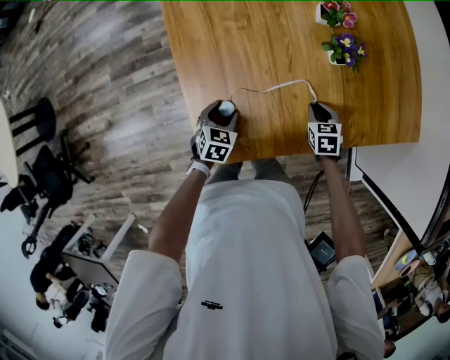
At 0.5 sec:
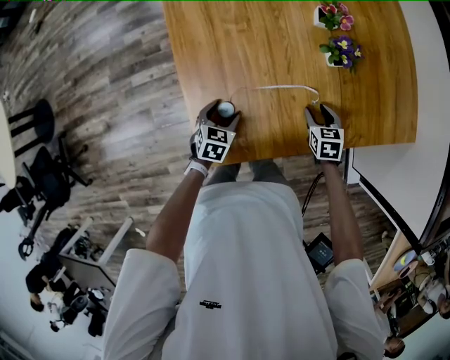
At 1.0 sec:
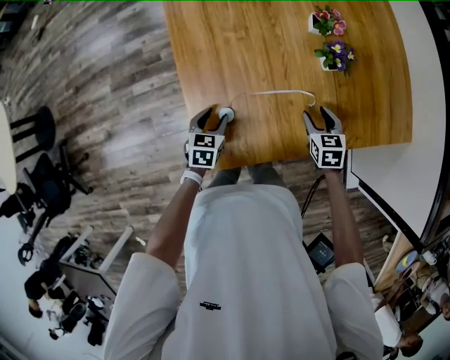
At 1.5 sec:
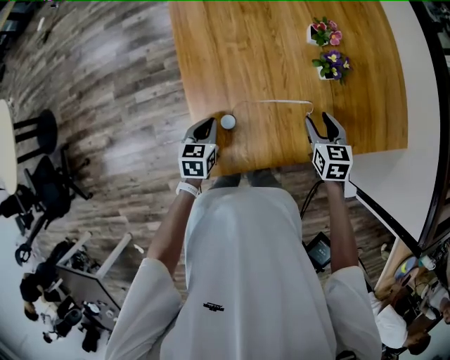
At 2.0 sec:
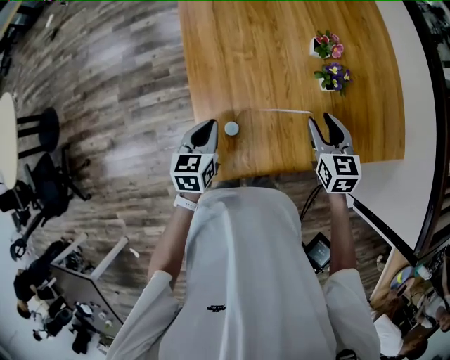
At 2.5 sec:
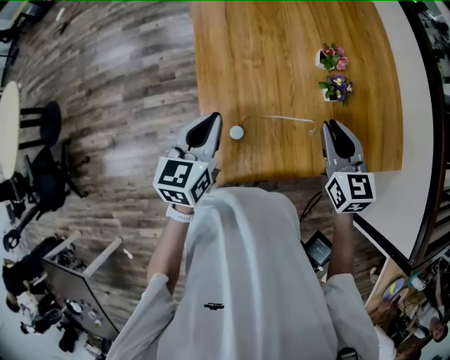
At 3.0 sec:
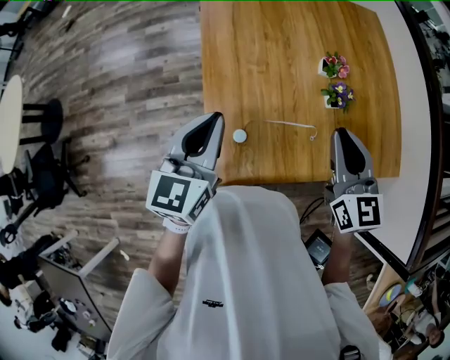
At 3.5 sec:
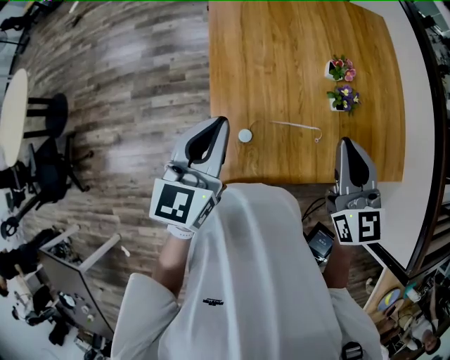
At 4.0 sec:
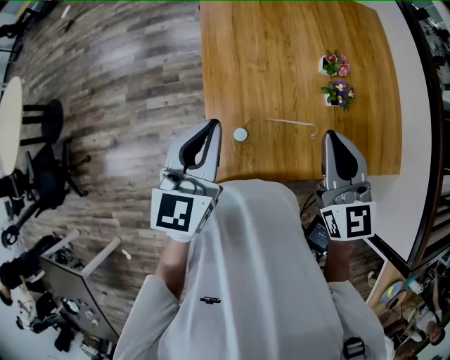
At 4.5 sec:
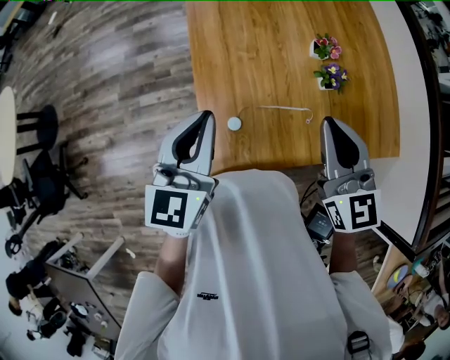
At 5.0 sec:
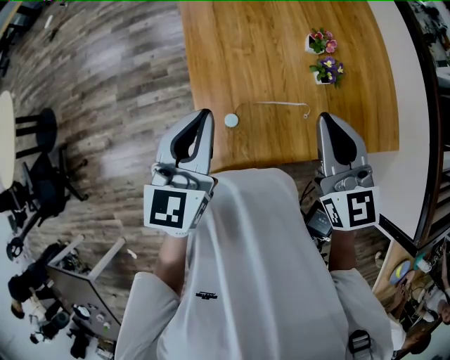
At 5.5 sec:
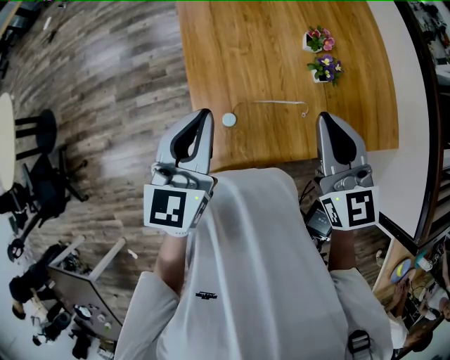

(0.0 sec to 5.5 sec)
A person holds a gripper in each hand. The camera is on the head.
0.0 sec - 2.0 sec: The two grippers go some 20 cm upward. The right gripper rotates some 30 degrees, and opens up, while the left gripper turns by about 30 degrees, and closes.
2.0 sec - 3.5 sec: The grippers both shift upward by some 20 cm. The right gripper changes its angle by some 20 degrees, and closes its fingers. Meanwhile the left gripper changes its angle by some 20 degrees.
3.5 sec - 5.5 sec: The grippers stay close to where they were, moving slightly.

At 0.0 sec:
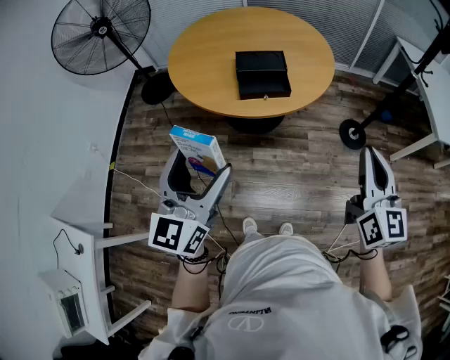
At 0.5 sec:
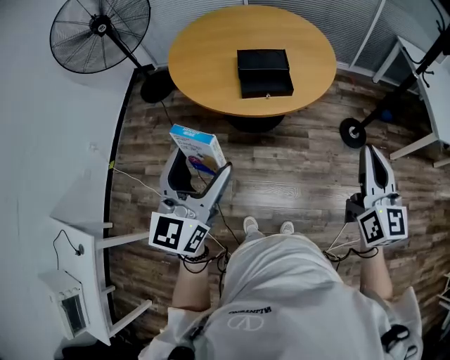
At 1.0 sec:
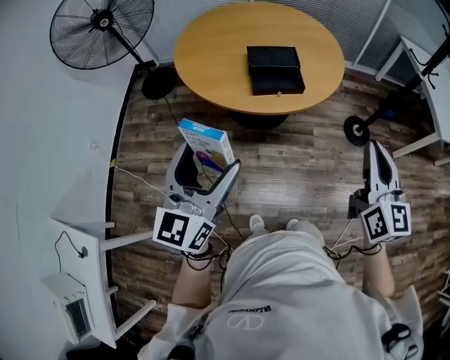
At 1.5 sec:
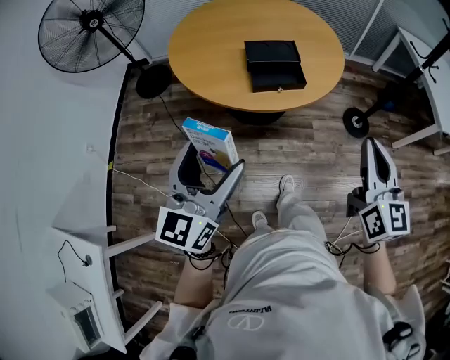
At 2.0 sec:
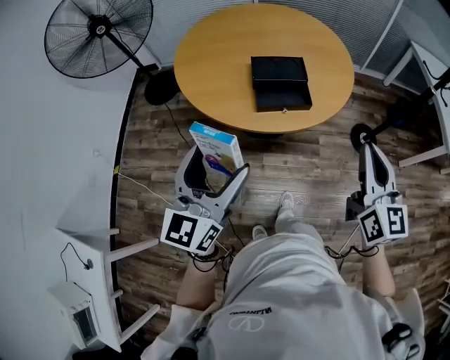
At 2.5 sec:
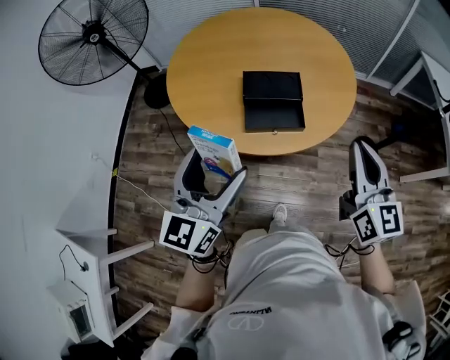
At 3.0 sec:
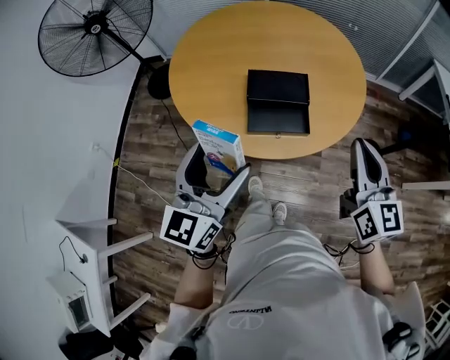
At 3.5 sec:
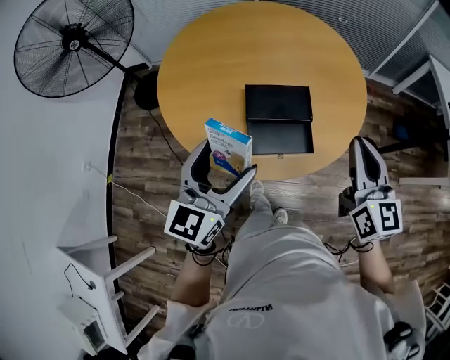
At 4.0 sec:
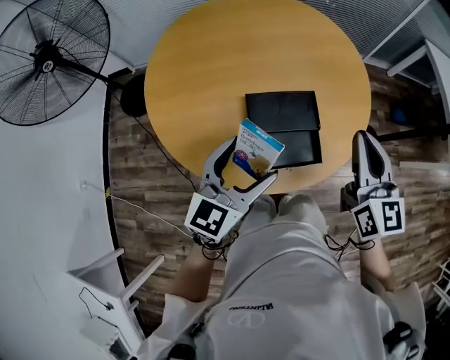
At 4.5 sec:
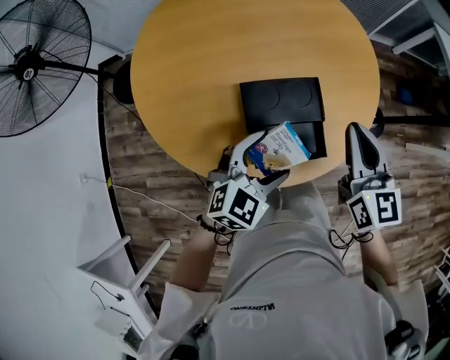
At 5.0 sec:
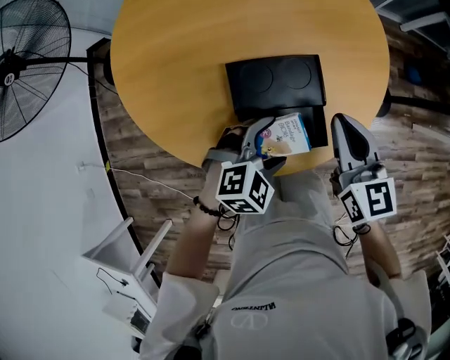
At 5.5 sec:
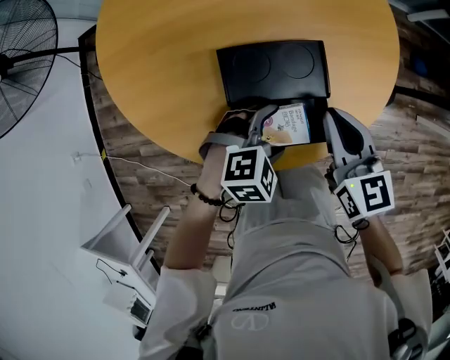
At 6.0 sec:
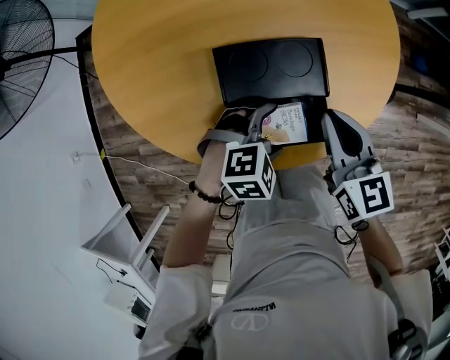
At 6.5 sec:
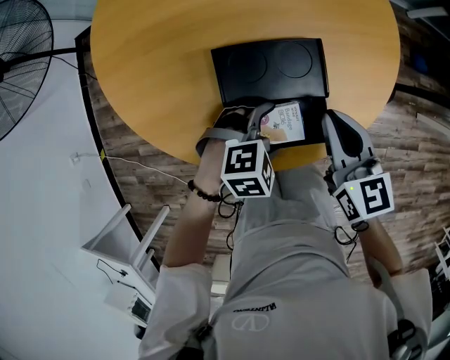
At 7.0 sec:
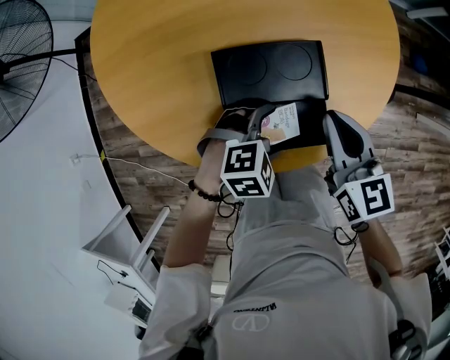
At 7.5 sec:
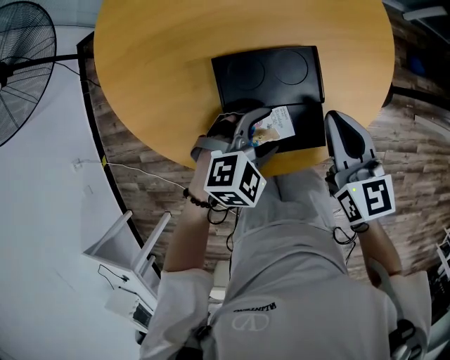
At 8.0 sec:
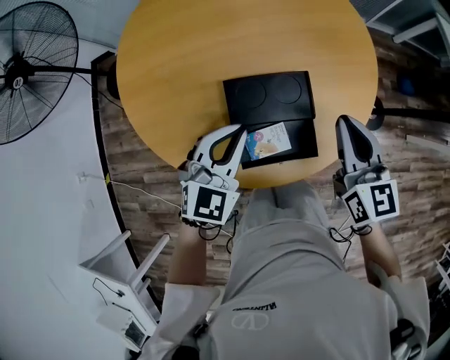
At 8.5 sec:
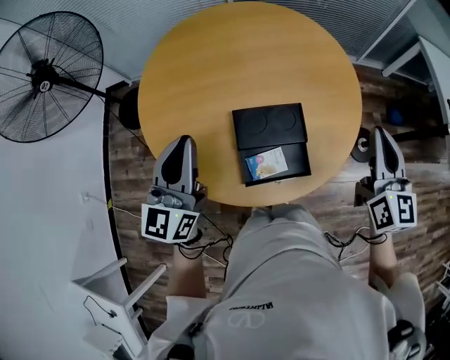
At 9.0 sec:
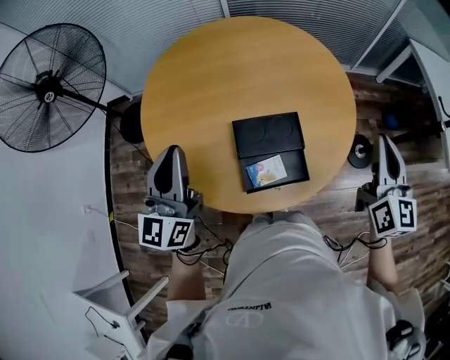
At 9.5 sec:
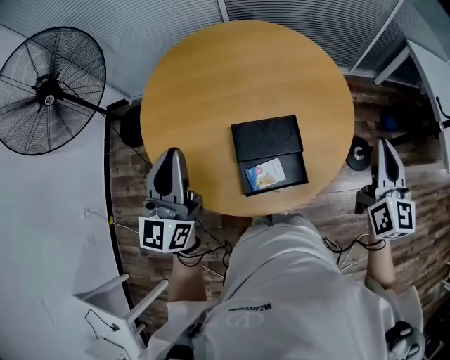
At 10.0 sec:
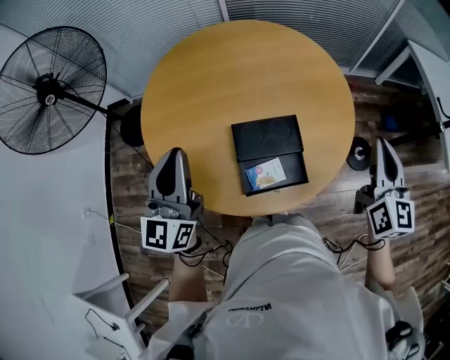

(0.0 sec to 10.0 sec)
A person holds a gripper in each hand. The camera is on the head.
0.0 sec - 2.0 sec: The grippers both shift forward and to the left by roughly 15 cm.
2.0 sec - 4.0 sec: The two grippers go about 35 cm forward. The left gripper rotates approximately 20 degrees.
4.0 sec - 6.0 sec: Both grippers move downward, approximately 25 cm. The left gripper tilts its fingers about 50 degrees downward. Meanwhile the right gripper turns by roughly 20 degrees.
6.0 sec - 8.0 sec: The left gripper is displaced upward and to the left by some 20 cm, tilts its fingers roughly 40 degrees upward, and closes its fingers, while the right gripper travels upward by some 10 cm.
8.0 sec - 10.0 sec: The right gripper moves upward and to the right, about 20 cm, and rotates some 20 degrees. Meanwhile the left gripper travels upward and to the left by roughly 25 cm, and tilts its fingers about 30 degrees upward.

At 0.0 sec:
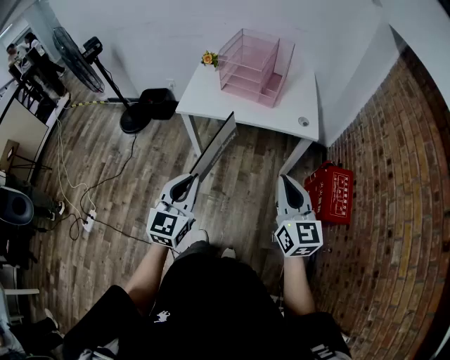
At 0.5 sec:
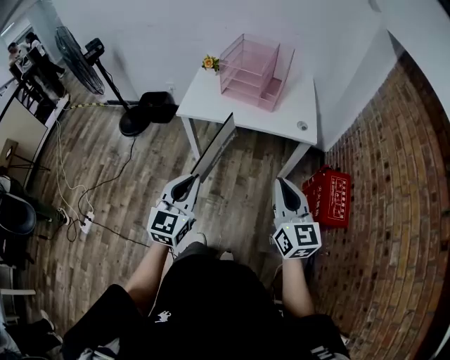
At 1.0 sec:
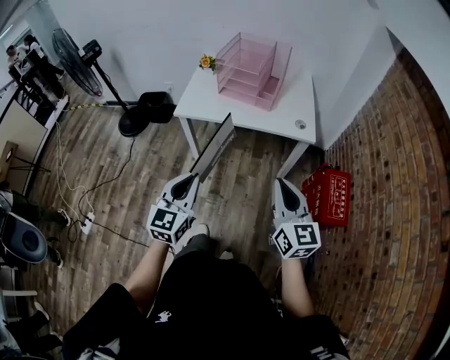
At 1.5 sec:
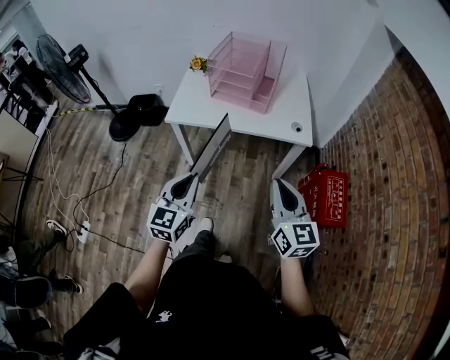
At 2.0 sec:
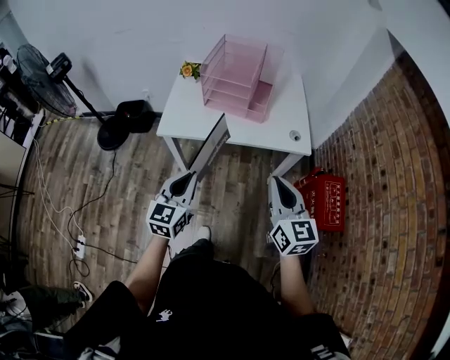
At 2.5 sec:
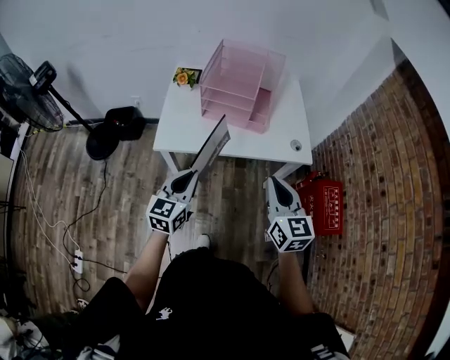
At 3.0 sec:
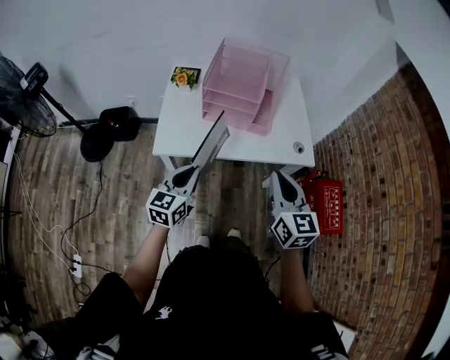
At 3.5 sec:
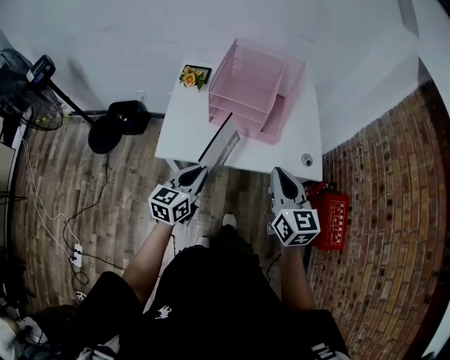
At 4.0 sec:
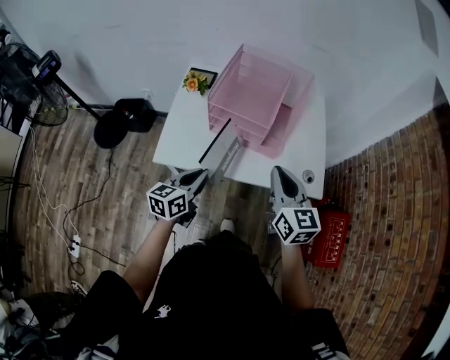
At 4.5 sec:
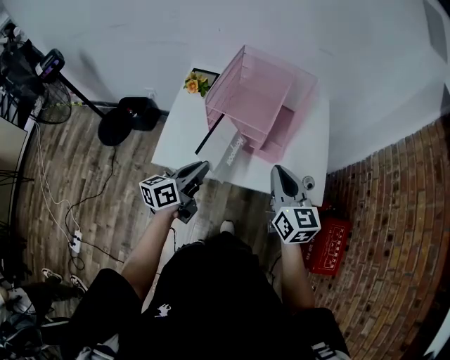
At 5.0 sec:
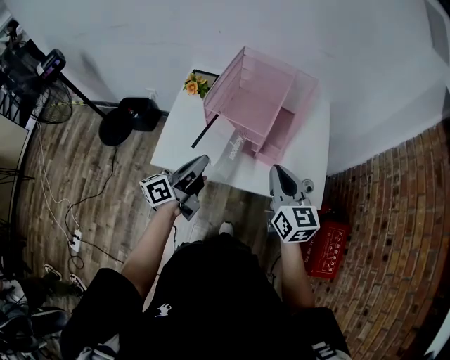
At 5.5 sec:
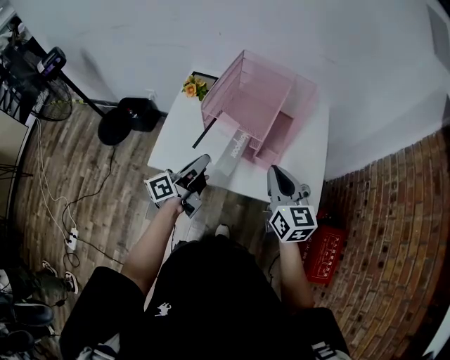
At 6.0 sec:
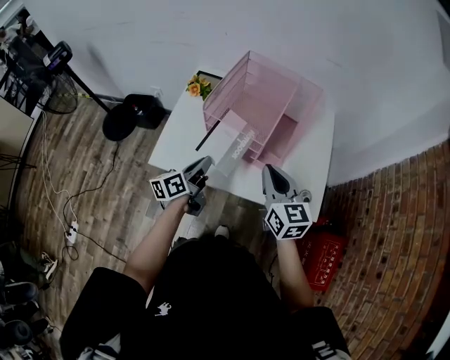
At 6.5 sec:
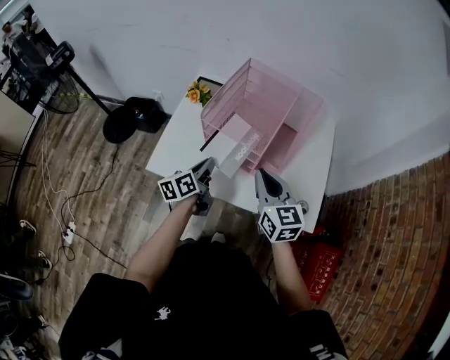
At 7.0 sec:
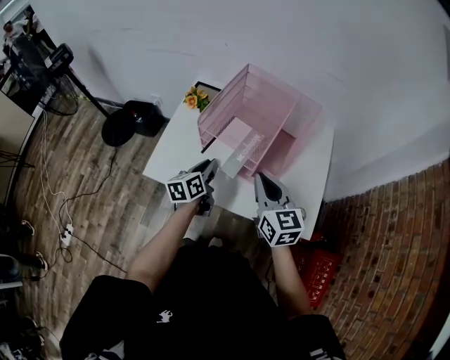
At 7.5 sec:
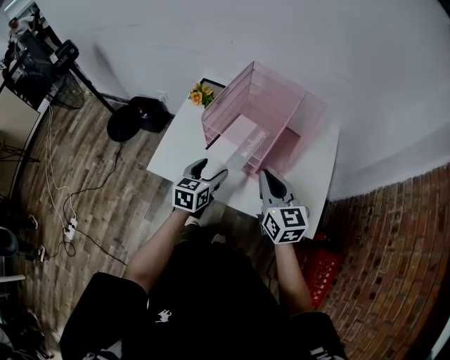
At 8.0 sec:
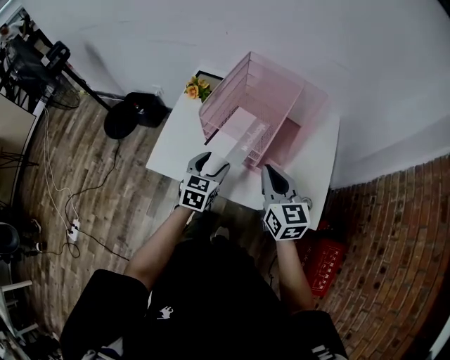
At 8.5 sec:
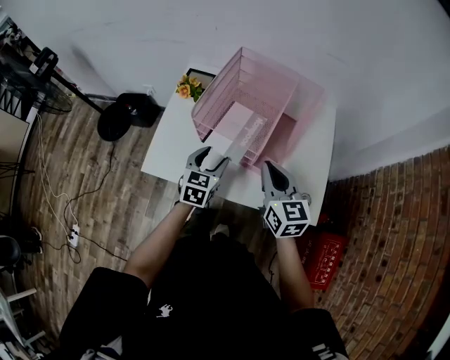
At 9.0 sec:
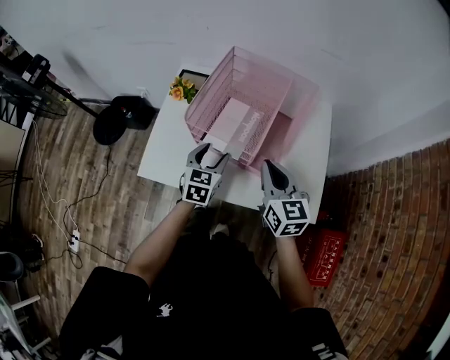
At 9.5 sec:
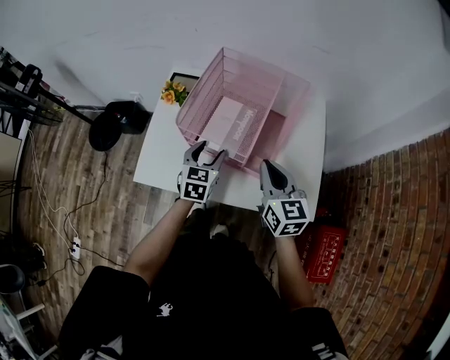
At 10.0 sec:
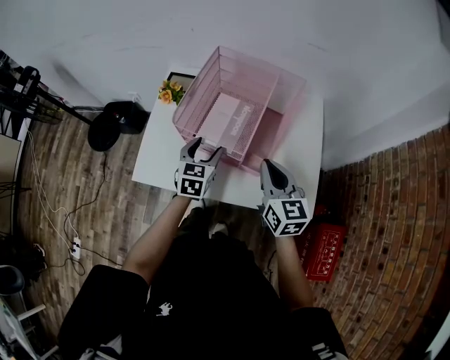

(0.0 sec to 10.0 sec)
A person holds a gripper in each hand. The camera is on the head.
0.0 sec - 2.0 sec: The grippers both shift forward by approximately 15 cm.
2.0 sec - 4.0 sec: The grippers both shift forward by some 25 cm. The left gripper rotates approximately 30 degrees.
4.0 sec - 6.0 sec: Both grippers travel together forward, roughly 10 cm. The left gripper rotates approximately 30 degrees.
6.0 sec - 8.0 sec: The left gripper changes place by about 5 cm, rolls clockwise, seen from behind, by approximately 50 degrees, and opens.
8.0 sec - 10.0 sec: The left gripper moves forward, approximately 5 cm.

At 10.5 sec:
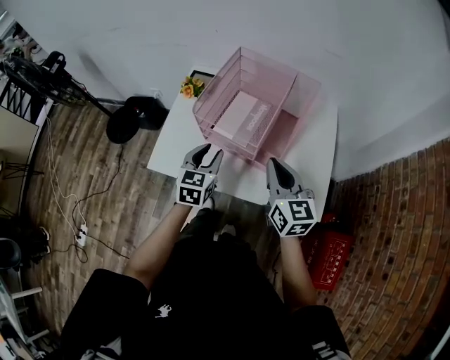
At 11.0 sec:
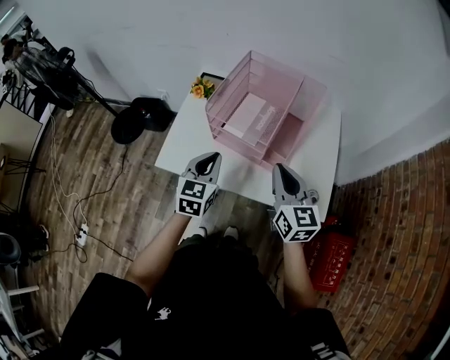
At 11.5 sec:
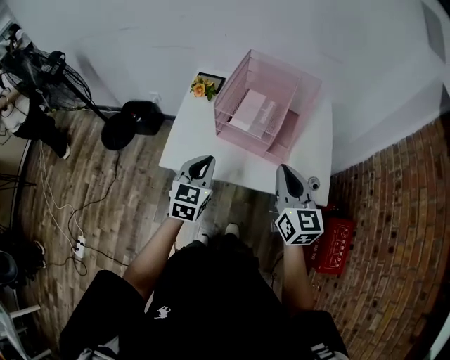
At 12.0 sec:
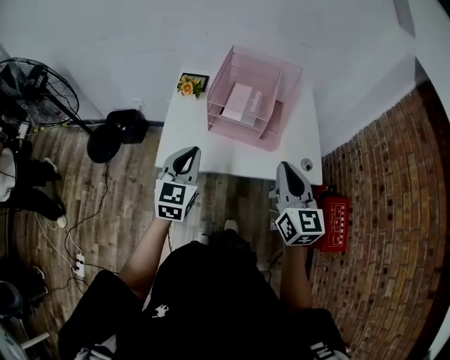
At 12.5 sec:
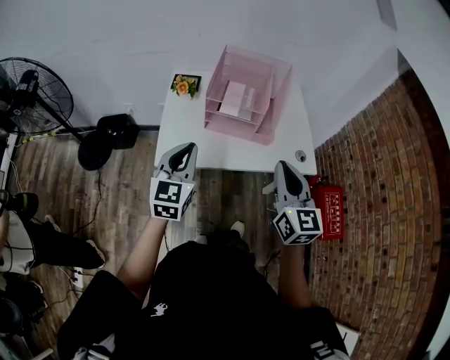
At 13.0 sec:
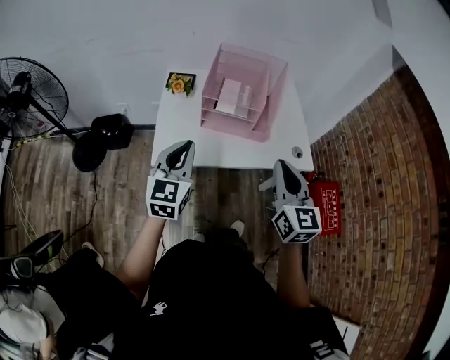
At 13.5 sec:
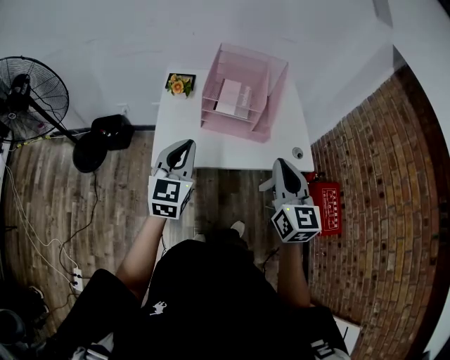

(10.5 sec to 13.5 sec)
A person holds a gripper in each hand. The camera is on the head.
10.5 sec - 12.0 sec: The right gripper travels backward, upward and to the left by approximately 20 cm. The left gripper heads backward, to the left and upward, covering some 20 cm, and closes.
12.0 sec - 13.5 sec: The grippers stay close to where they were, moving slightly.
